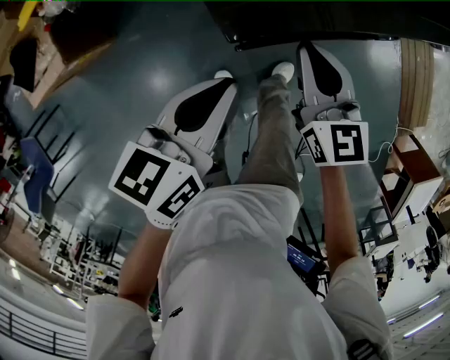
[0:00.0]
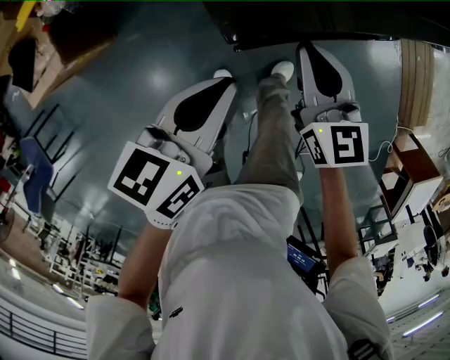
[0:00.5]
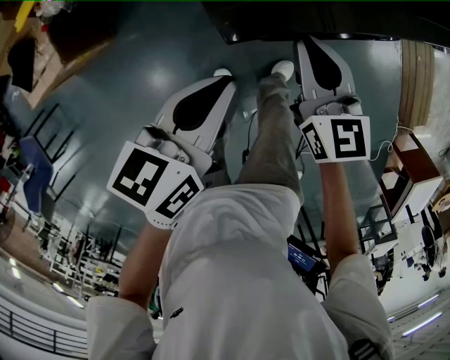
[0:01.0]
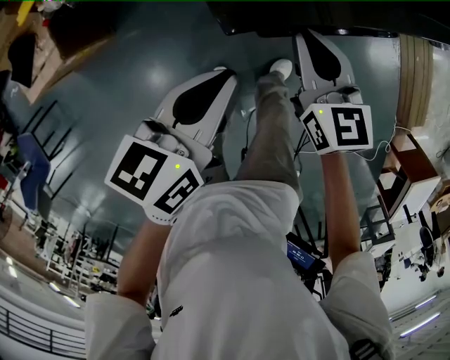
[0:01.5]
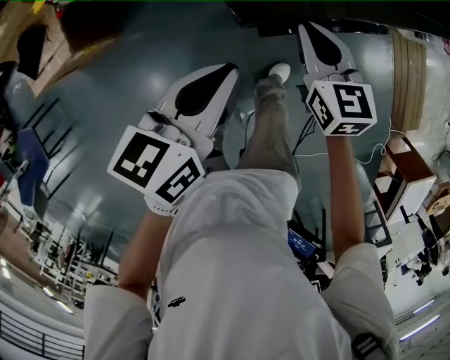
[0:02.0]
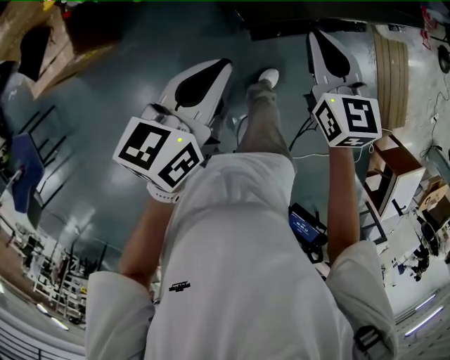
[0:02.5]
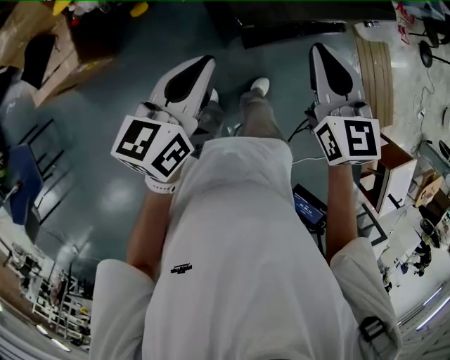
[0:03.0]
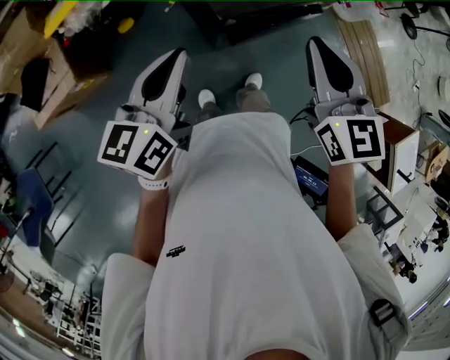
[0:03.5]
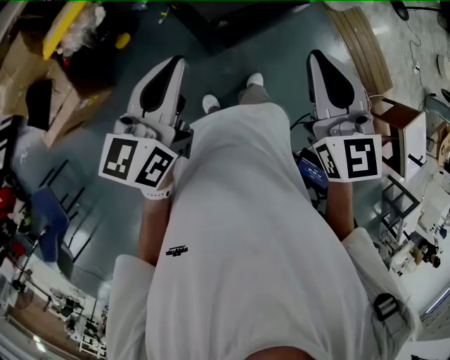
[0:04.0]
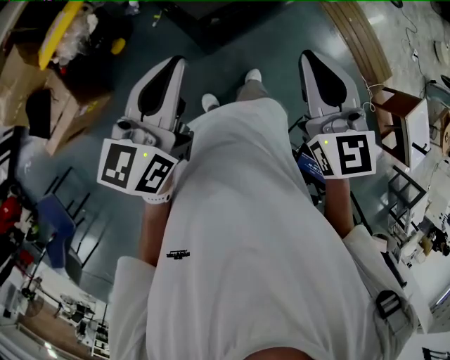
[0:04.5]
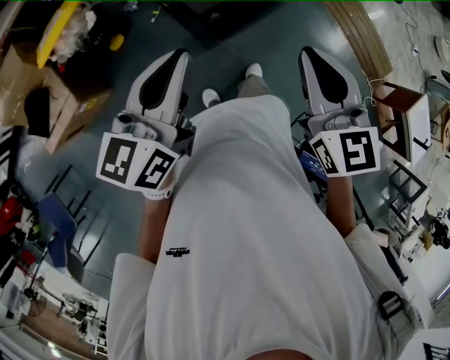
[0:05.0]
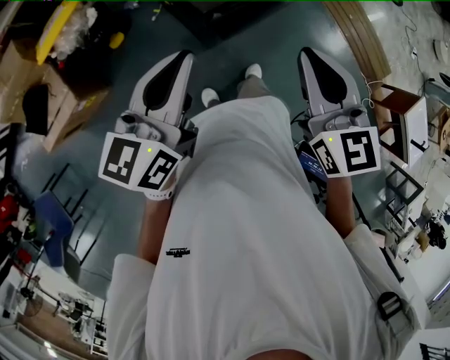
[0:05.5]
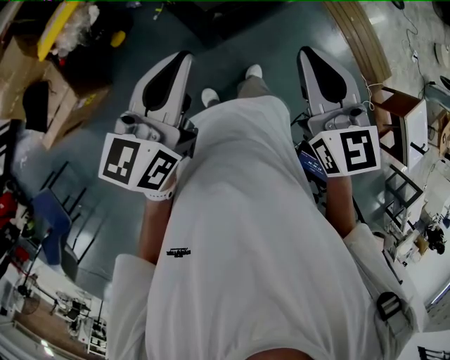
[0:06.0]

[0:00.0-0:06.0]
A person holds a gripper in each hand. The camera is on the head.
0:00.0 to 0:02.0: The left gripper changes place by some 5 cm.
0:02.0 to 0:04.0: The left gripper moves upward, roughly 15 cm, and swivels some 20 degrees. Meanwhile the right gripper shifts roughly 30 cm upward and backward, and swivels approximately 30 degrees.
0:04.0 to 0:06.0: There are only small adjustments of the grippers.

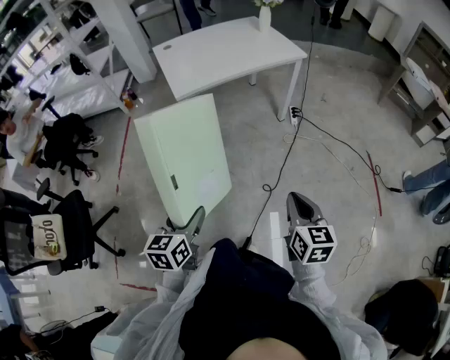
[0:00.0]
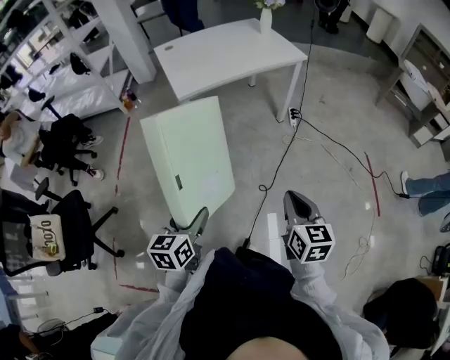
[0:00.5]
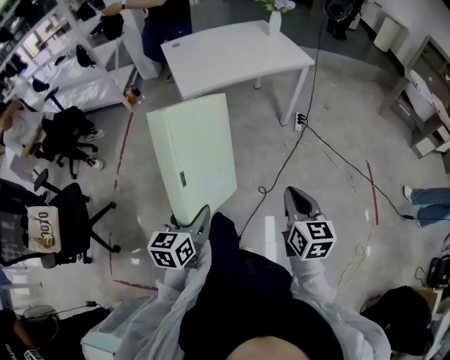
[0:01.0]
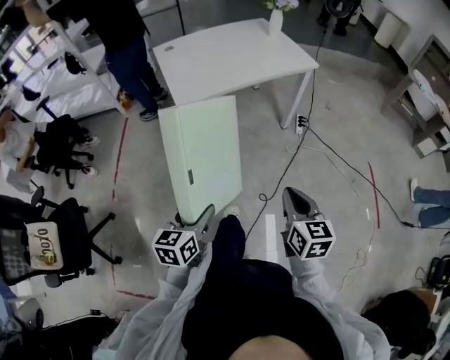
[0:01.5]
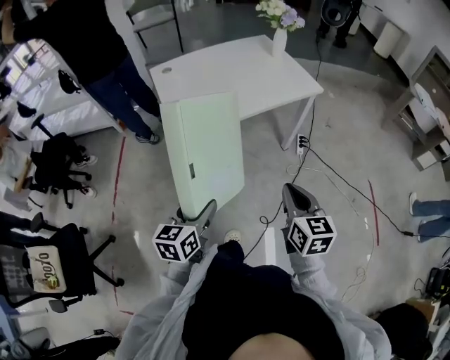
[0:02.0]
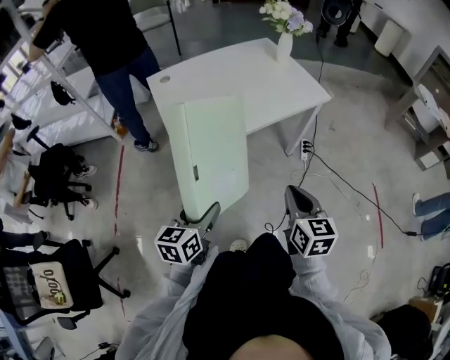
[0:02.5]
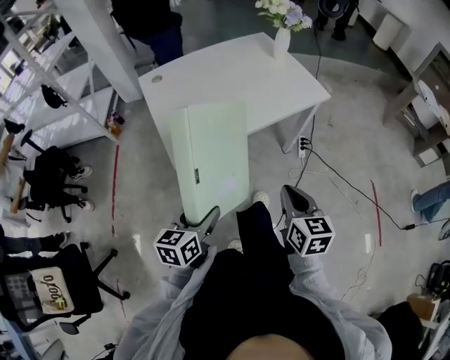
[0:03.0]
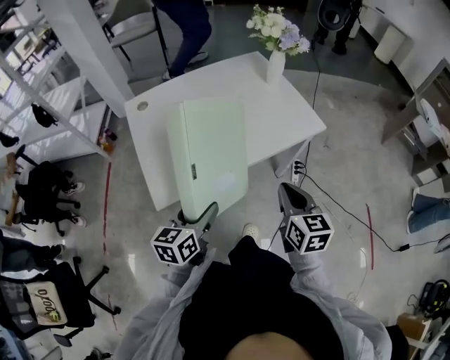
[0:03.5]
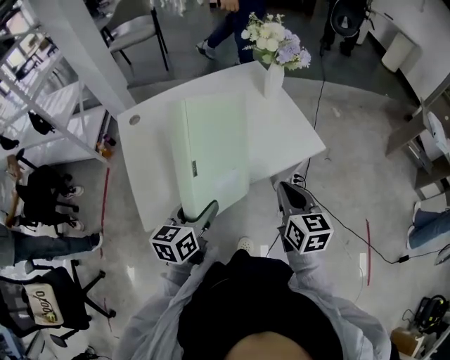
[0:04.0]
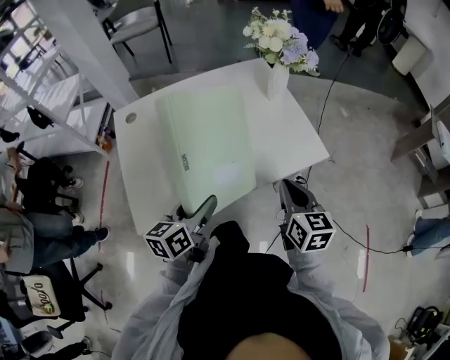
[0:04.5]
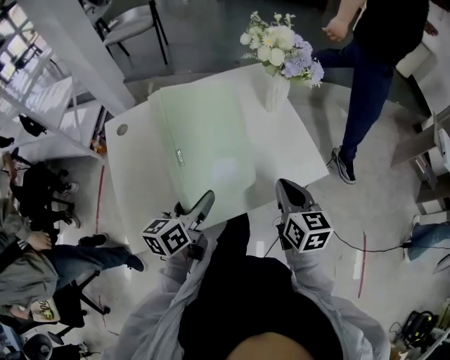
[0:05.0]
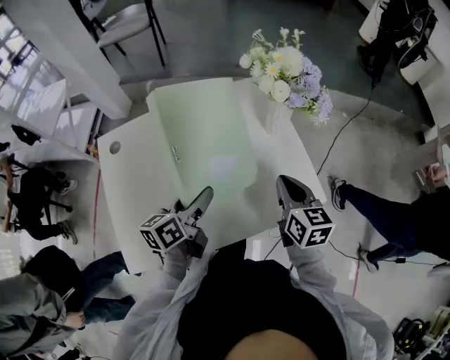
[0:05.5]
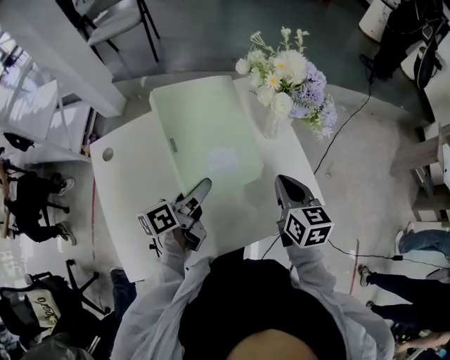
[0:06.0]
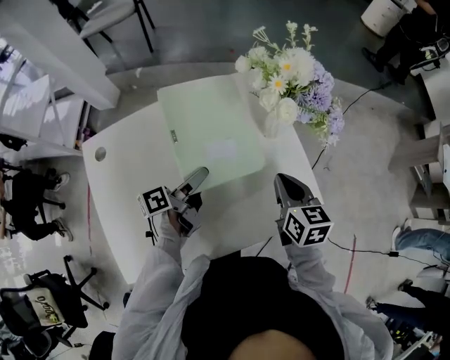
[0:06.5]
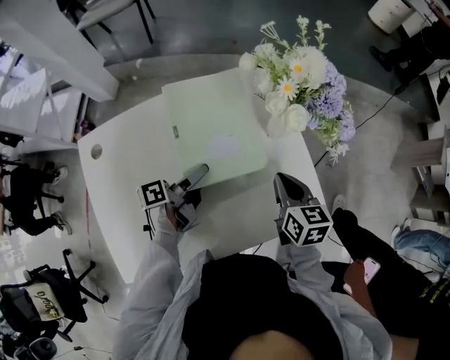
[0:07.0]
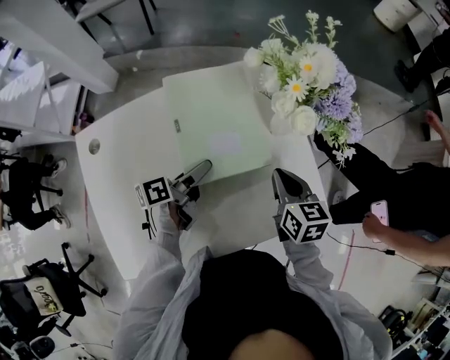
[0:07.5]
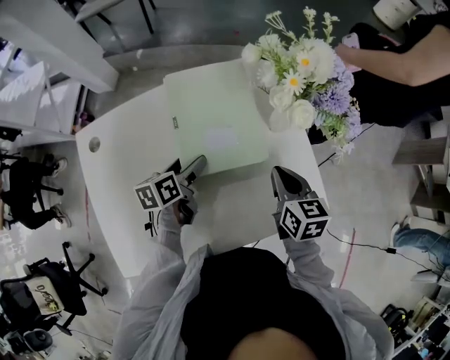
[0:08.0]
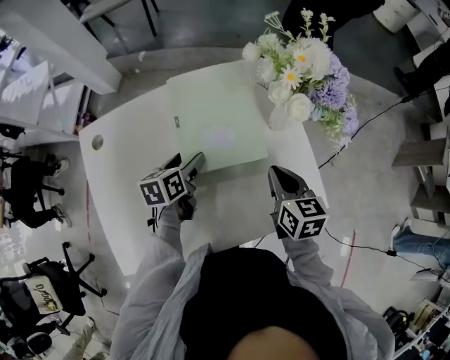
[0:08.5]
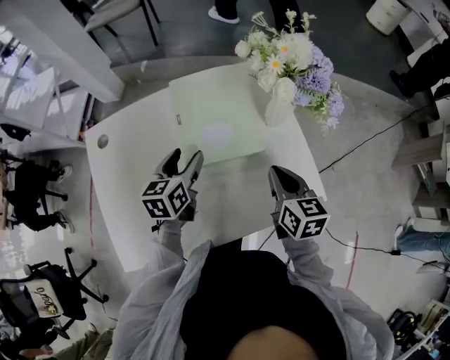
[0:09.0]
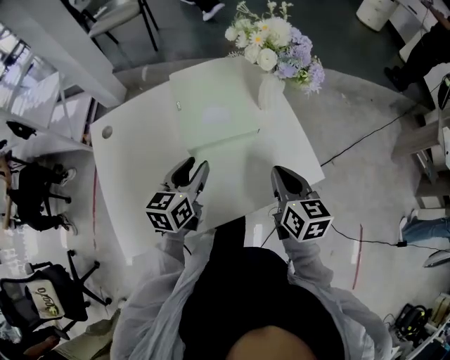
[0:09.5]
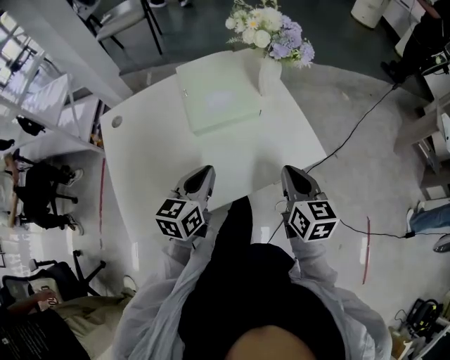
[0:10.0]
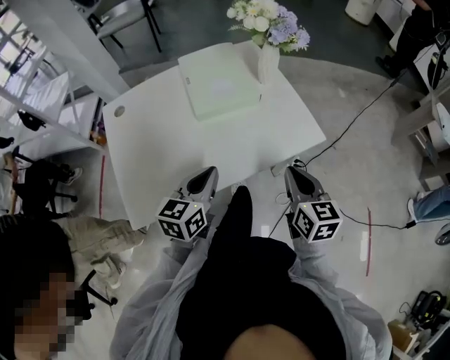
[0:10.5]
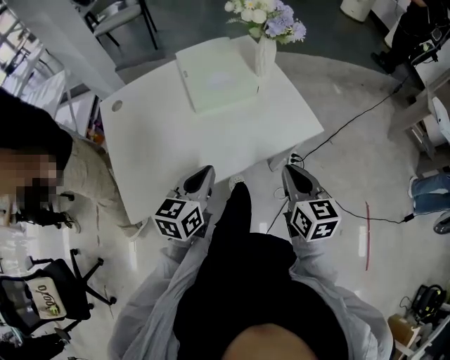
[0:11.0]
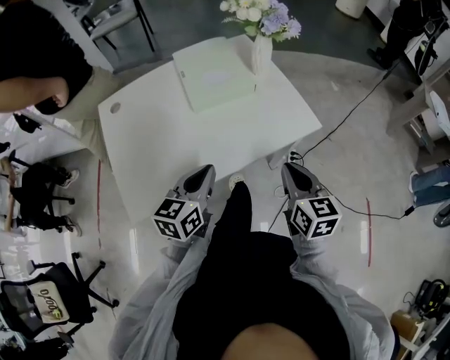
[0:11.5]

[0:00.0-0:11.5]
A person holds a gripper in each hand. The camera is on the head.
0:00.0 to 0:02.0: Both grippers travel together forward, some 10 cm.
0:02.0 to 0:04.0: The left gripper moves about 15 cm backward and comes back. The right gripper goes roughly 10 cm forward.
0:04.0 to 0:06.0: The two grippers go roughly 30 cm forward. The left gripper turns by roughly 40 degrees.
0:06.0 to 0:07.5: The left gripper moves downward and forward, approximately 10 cm, while the right gripper is displaced downward by roughly 5 cm.
0:07.5 to 0:09.5: The grippers both shift backward and upward by about 15 cm. The left gripper rolls clockwise, seen from behind, by approximately 50 degrees, and closes up.
0:09.5 to 0:11.5: The grippers both shift backward by approximately 20 cm. The left gripper closes.

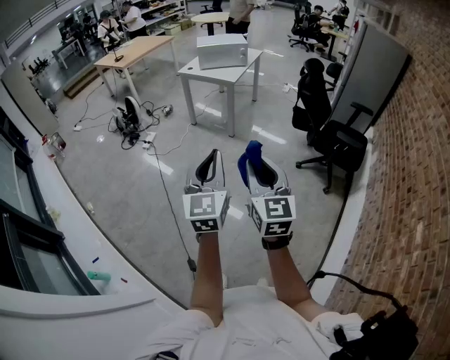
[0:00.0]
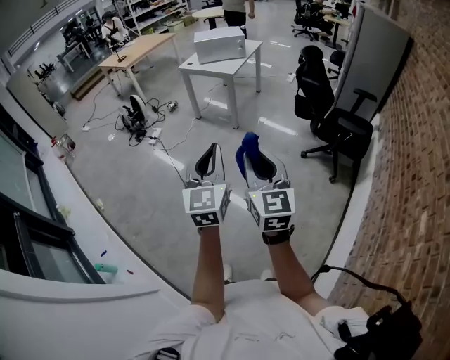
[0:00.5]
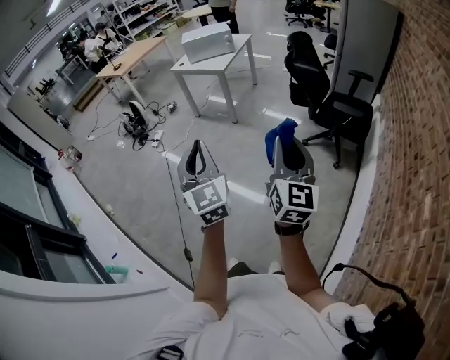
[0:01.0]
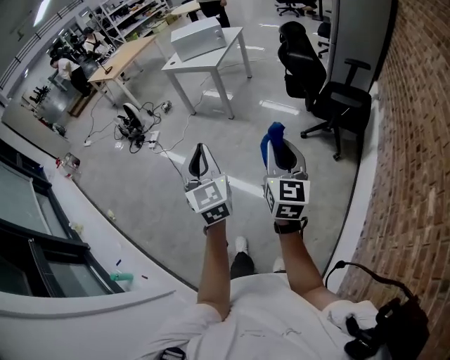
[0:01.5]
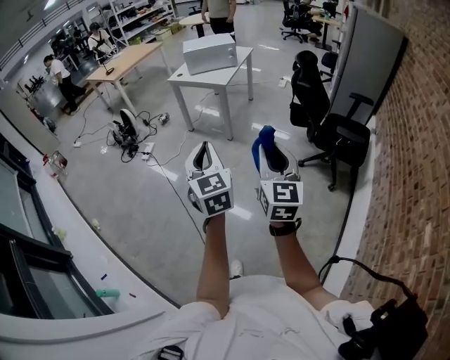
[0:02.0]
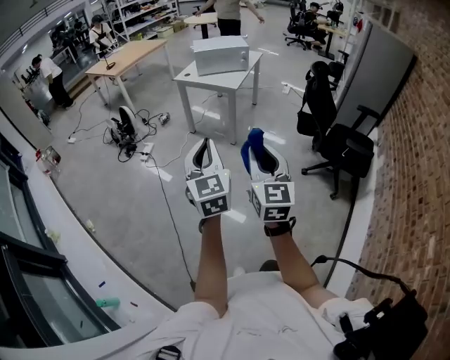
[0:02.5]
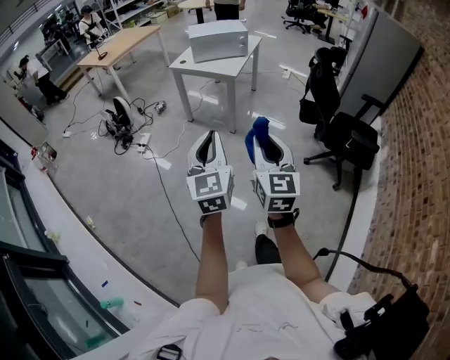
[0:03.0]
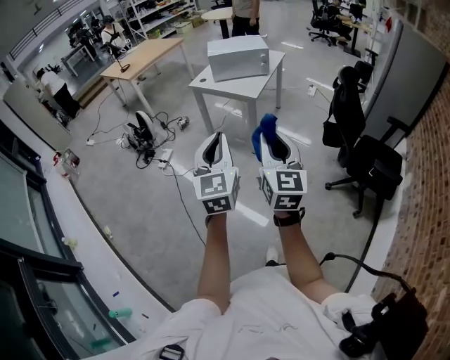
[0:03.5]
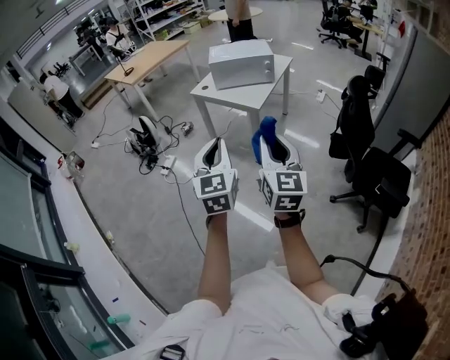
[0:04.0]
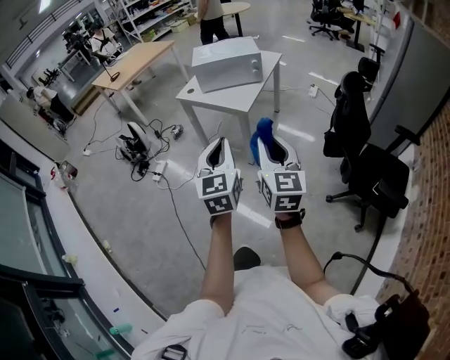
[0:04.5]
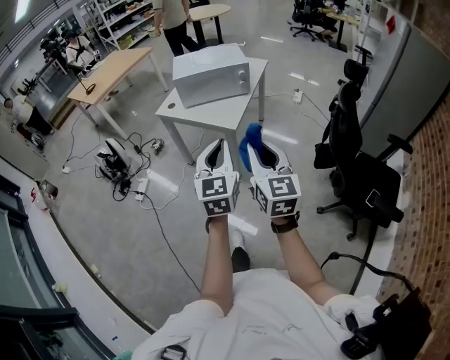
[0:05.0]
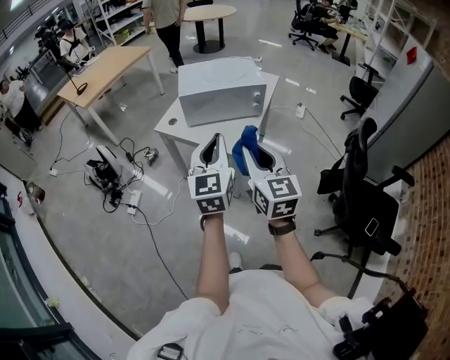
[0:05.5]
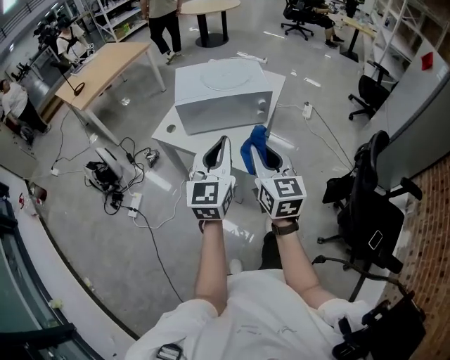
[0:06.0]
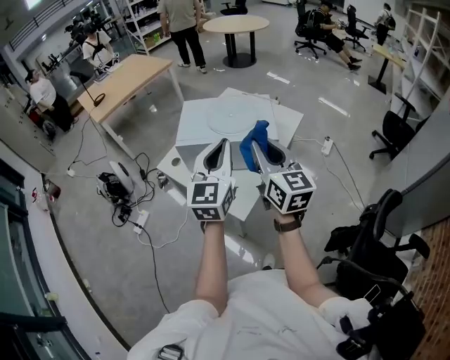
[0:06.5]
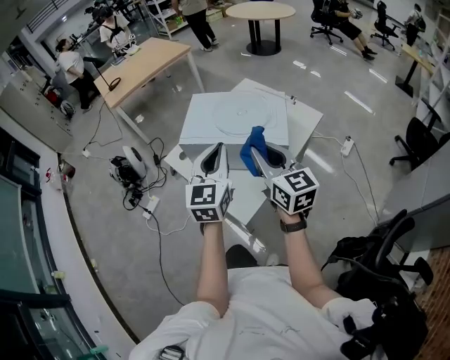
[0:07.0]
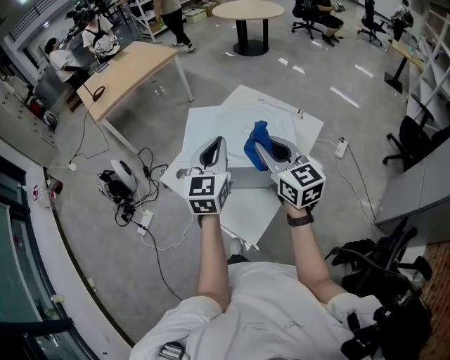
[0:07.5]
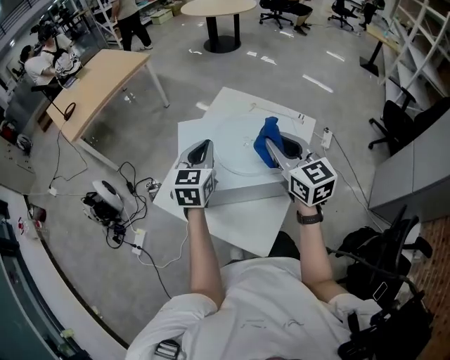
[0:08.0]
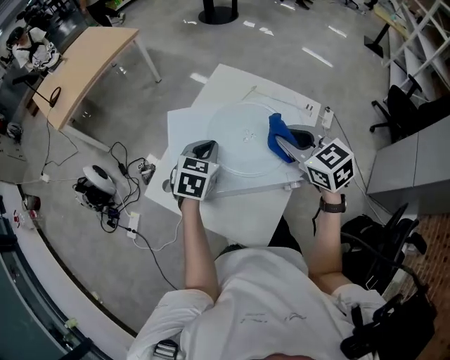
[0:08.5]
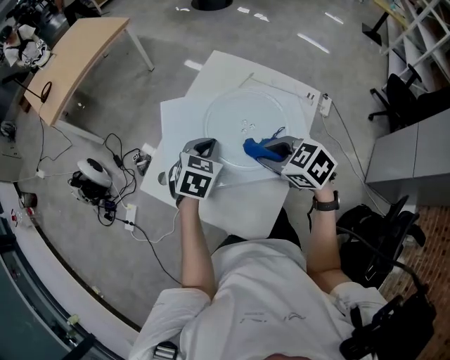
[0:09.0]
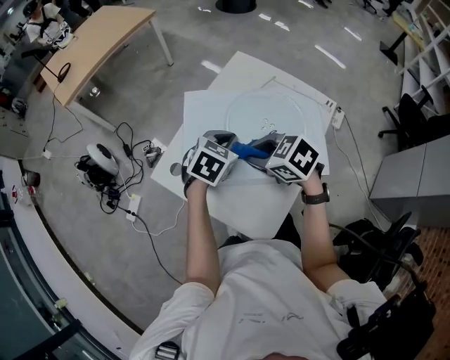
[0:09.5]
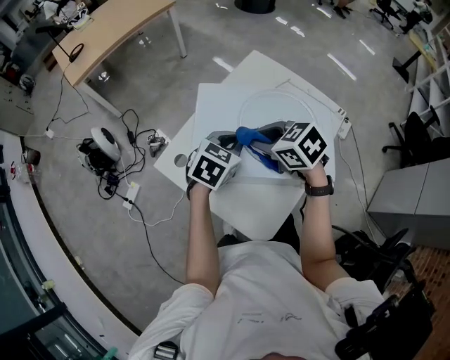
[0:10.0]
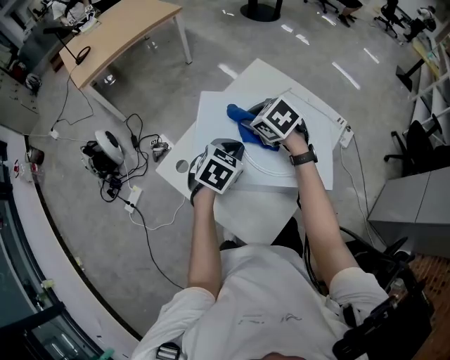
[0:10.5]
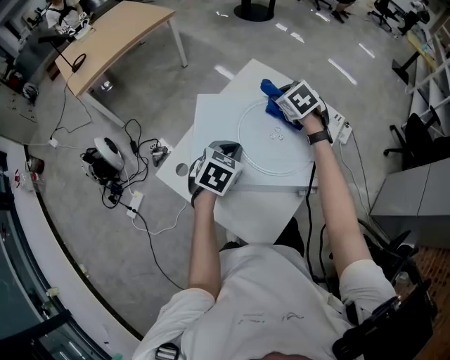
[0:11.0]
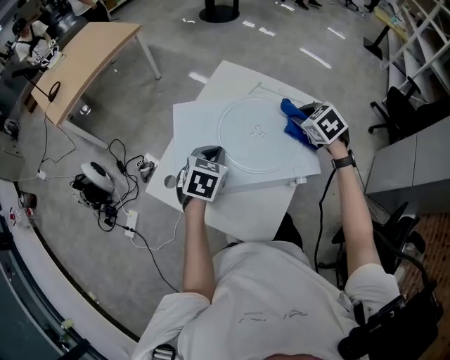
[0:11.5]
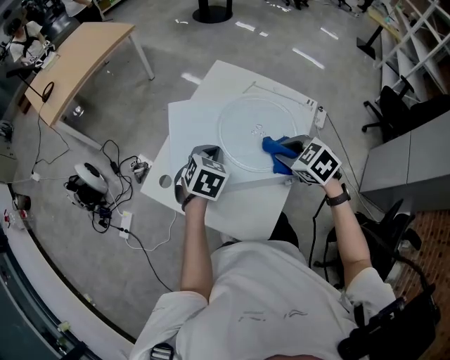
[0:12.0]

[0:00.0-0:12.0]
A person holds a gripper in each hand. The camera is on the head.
0:00.0 to 0:02.0: The right gripper heads to the right and forward, covering some 15 cm, while the left gripper moves forward, approximately 10 cm.
0:02.0 to 0:04.0: Both grippers travel together forward, roughly 35 cm.
0:04.0 to 0:06.0: The two grippers travel together, forward, approximately 50 cm.
0:06.0 to 0:08.0: Both grippers travel together forward, approximately 40 cm.
0:08.0 to 0:10.0: The right gripper shifts roughly 15 cm downward and to the left, and tips its fingers downward by some 40 degrees, while the left gripper moves downward, about 10 cm, and turns by some 30 degrees.
0:10.0 to 0:12.0: The right gripper travels to the right by approximately 15 cm, and turns by about 20 degrees.
